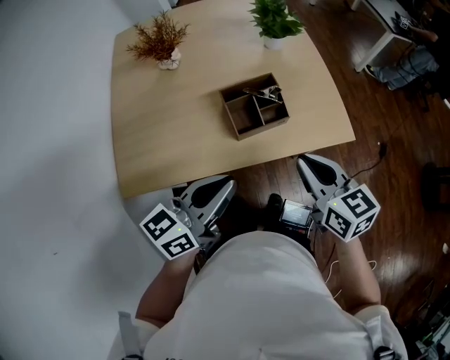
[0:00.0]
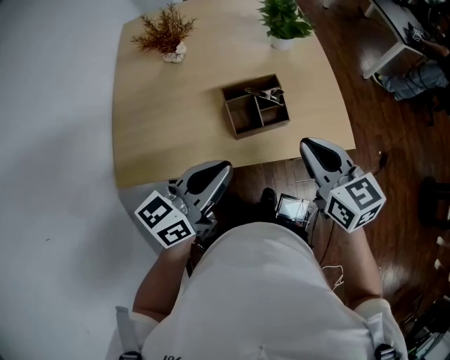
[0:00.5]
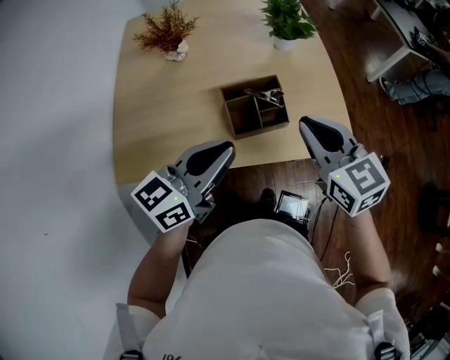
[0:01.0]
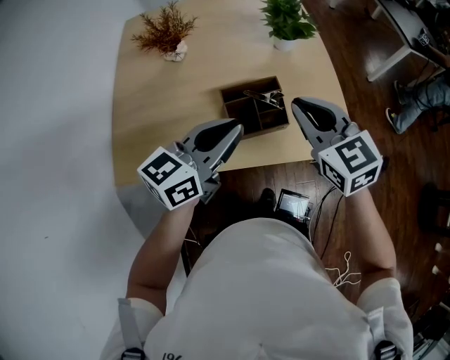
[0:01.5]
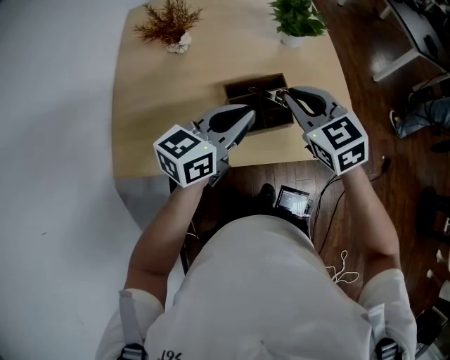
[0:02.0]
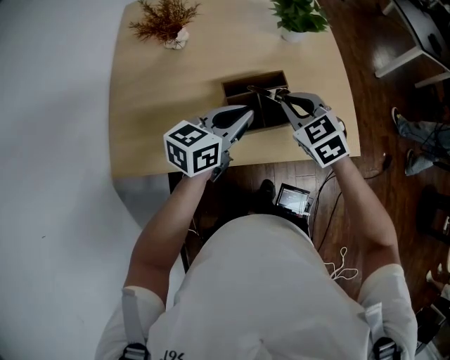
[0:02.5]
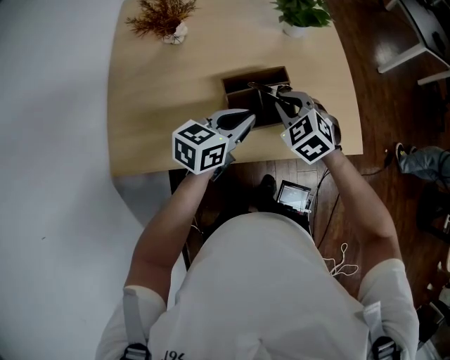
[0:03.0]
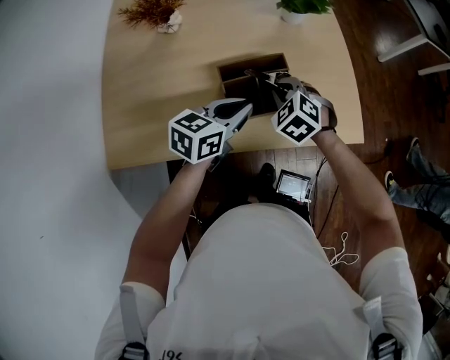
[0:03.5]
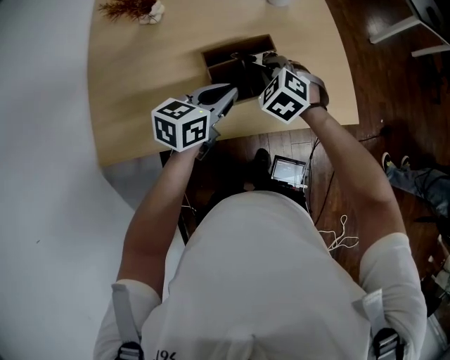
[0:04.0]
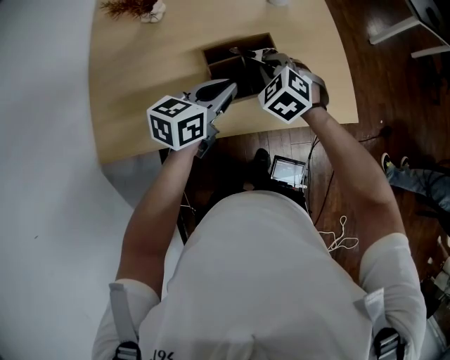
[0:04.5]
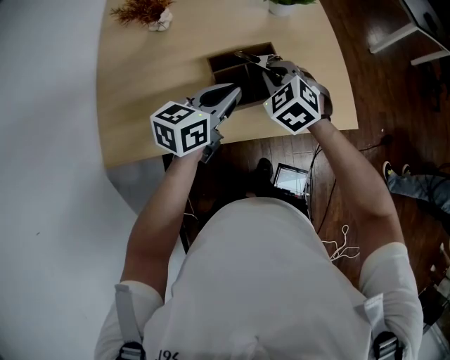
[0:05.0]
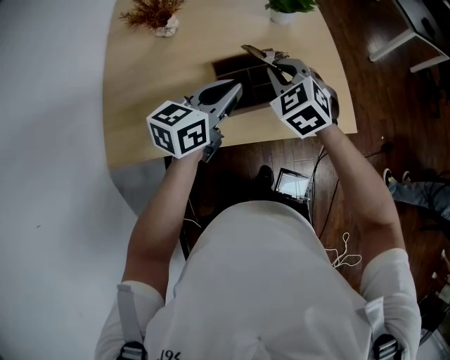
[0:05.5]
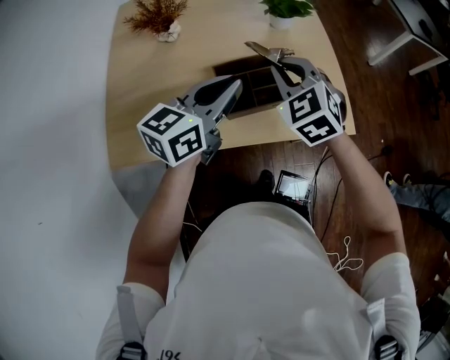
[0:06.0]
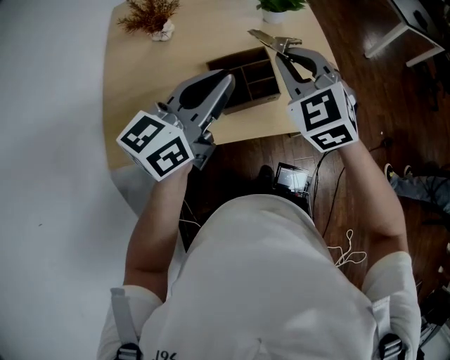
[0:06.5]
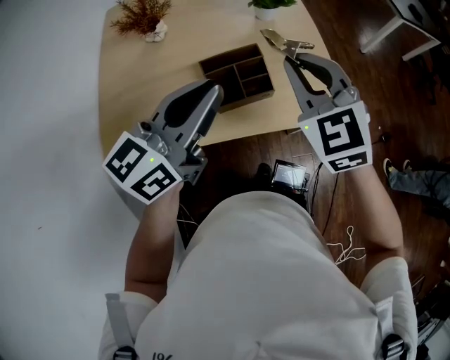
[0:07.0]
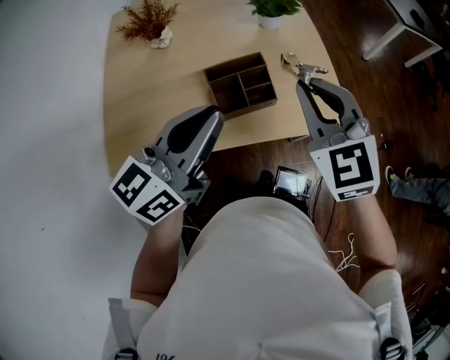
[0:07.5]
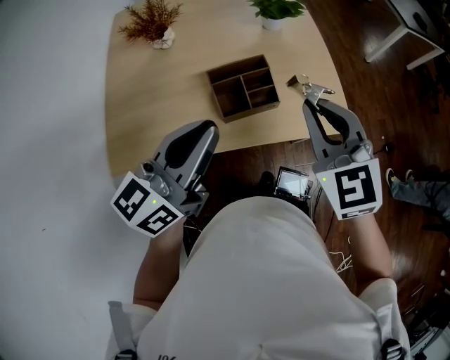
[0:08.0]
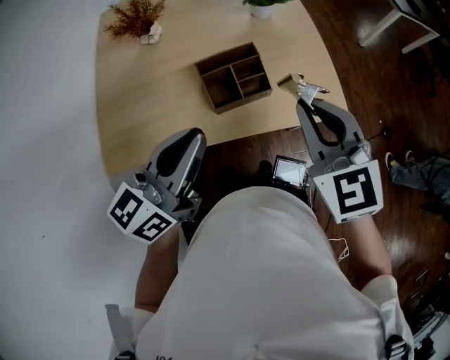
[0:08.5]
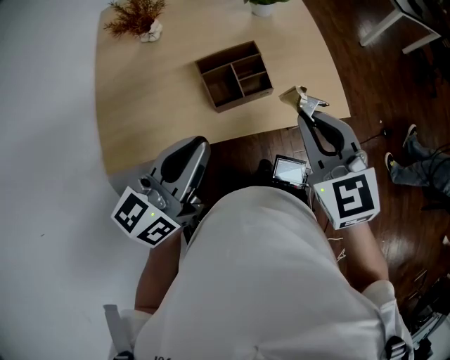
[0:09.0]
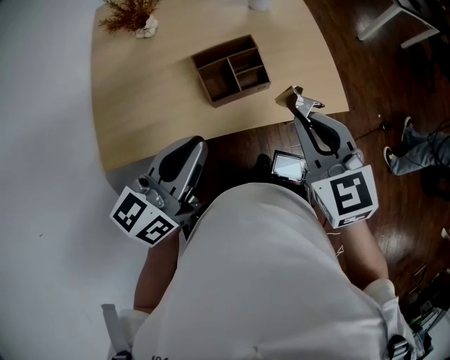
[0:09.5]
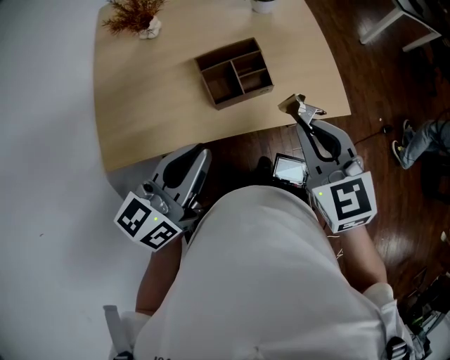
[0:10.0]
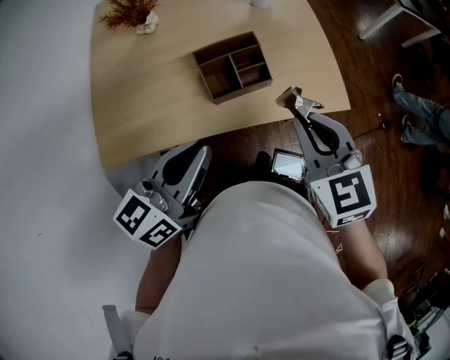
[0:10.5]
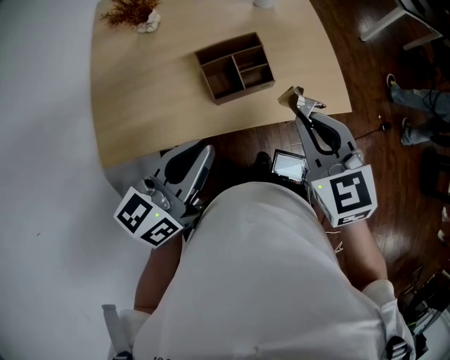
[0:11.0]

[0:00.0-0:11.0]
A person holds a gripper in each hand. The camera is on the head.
0:00.0 to 0:02.0: The grippers both shift forward by roughly 15 cm. The right gripper swivels some 30 degrees.
0:02.0 to 0:03.5: The grippers both shift downward by roughly 15 cm. The right gripper changes its angle by about 30 degrees.
0:03.5 to 0:05.5: Both grippers move upward, roughly 10 cm.
0:05.5 to 0:07.5: The left gripper goes roughly 15 cm upward and backward. Meanwhile the right gripper is displaced upward, backward and to the right by roughly 20 cm, and changes its angle by roughly 20 degrees.
0:07.5 to 0:09.0: The left gripper moves about 5 cm; the right gripper heads backward, covering roughly 5 cm.
0:09.0 to 0:11.0: There are only small adjustments of the grippers.

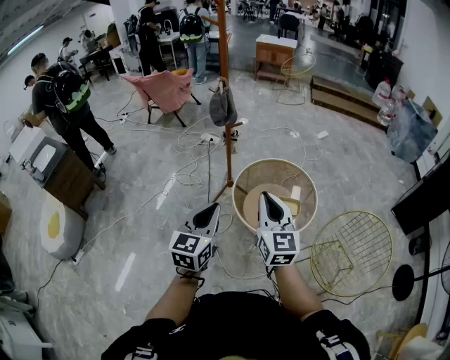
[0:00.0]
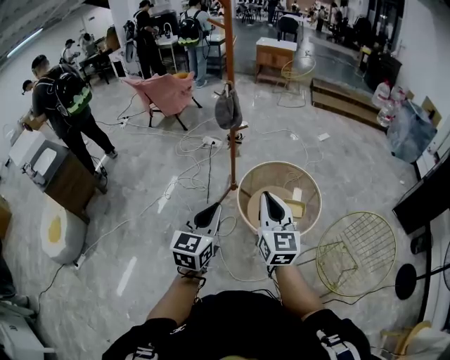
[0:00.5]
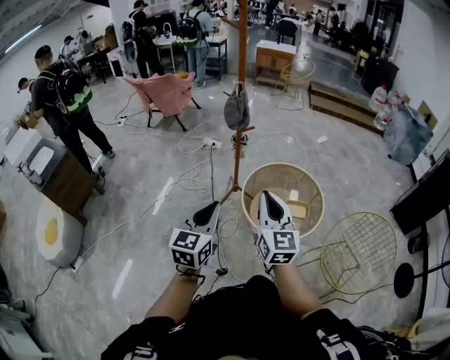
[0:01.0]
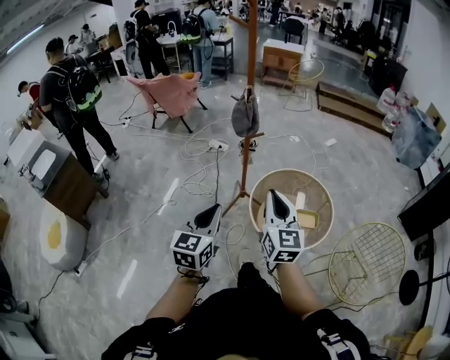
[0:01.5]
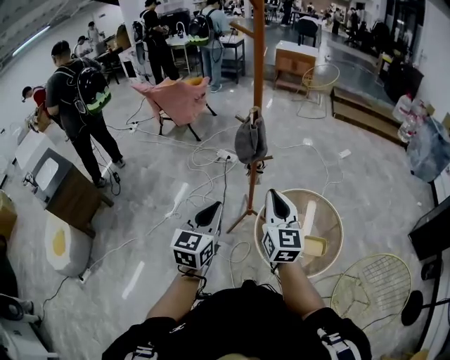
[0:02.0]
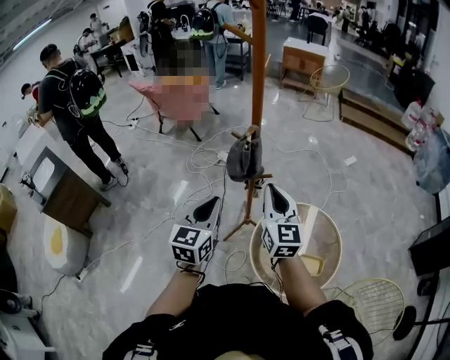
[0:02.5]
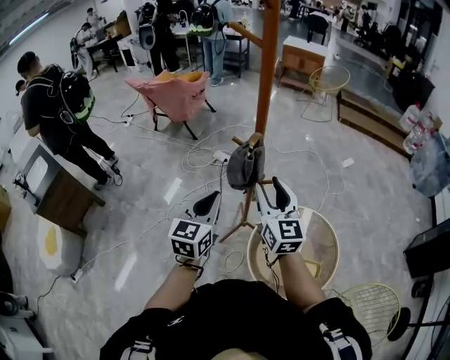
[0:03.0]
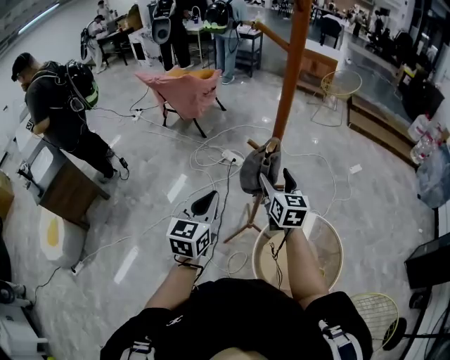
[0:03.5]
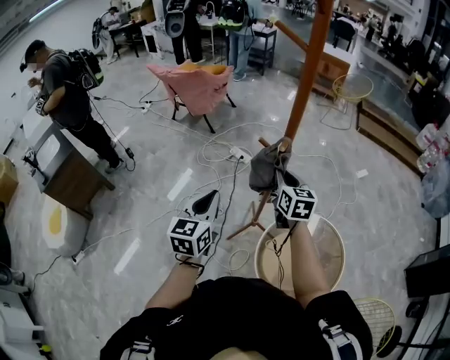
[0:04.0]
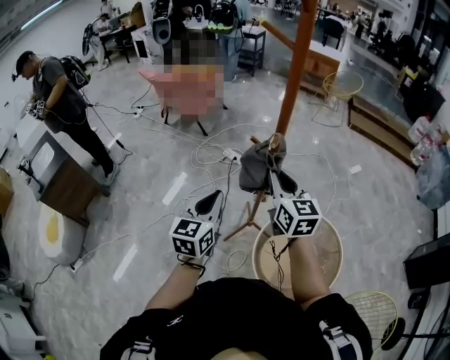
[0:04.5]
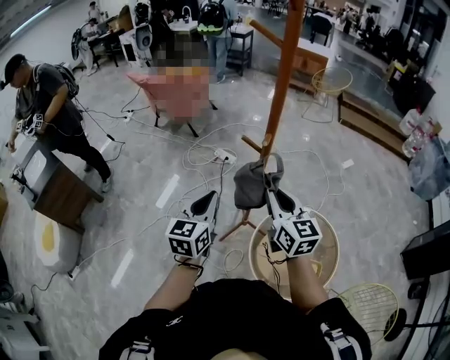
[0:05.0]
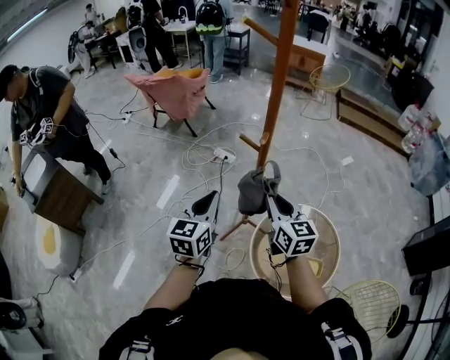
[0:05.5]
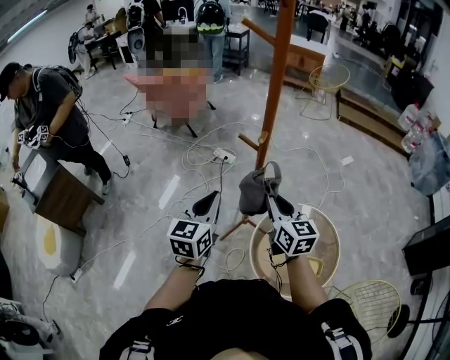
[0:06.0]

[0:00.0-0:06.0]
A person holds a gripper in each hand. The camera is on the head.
0:00.0 to 0:02.0: Both grippers travel together forward and to the left, some 35 cm.
0:02.0 to 0:04.0: The grippers both shift forward by some 30 cm. The right gripper rotates roughly 20 degrees, and opens and closes again.
0:04.0 to 0:06.0: The right gripper travels backward by roughly 15 cm; the left gripper shifts roughly 5 cm to the right.

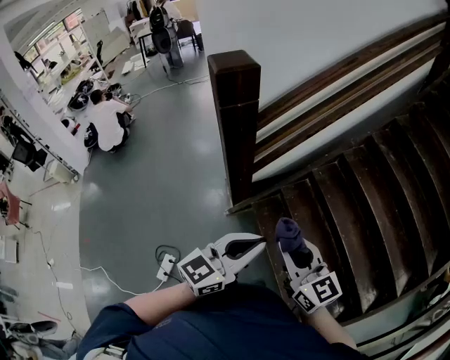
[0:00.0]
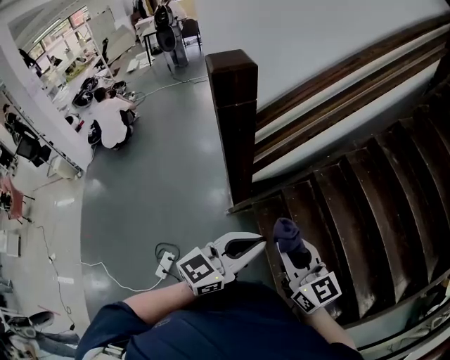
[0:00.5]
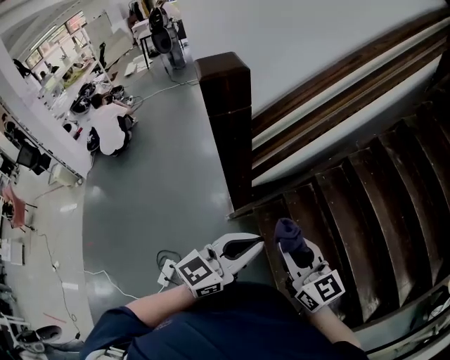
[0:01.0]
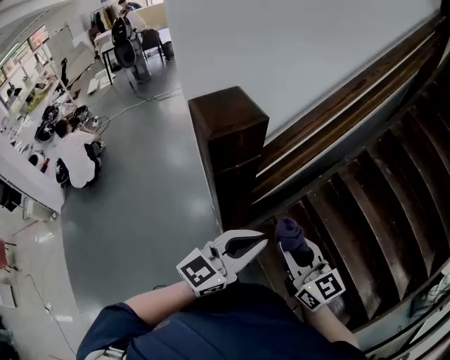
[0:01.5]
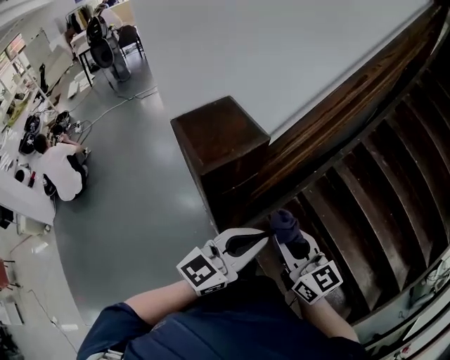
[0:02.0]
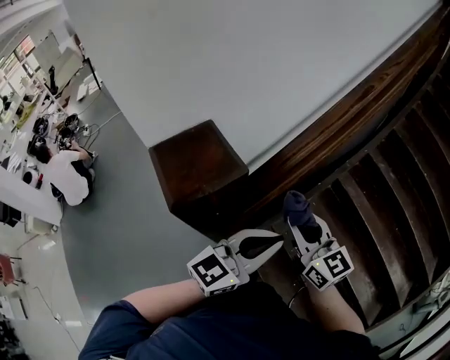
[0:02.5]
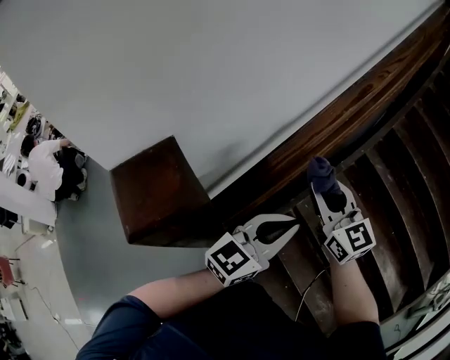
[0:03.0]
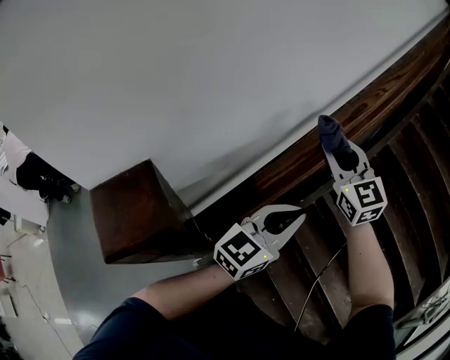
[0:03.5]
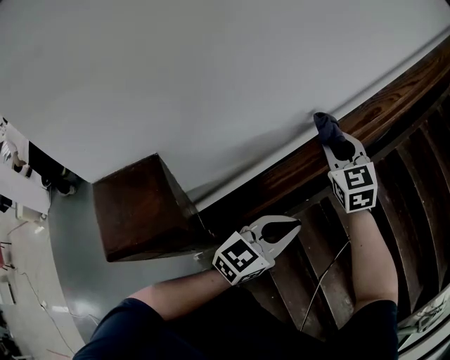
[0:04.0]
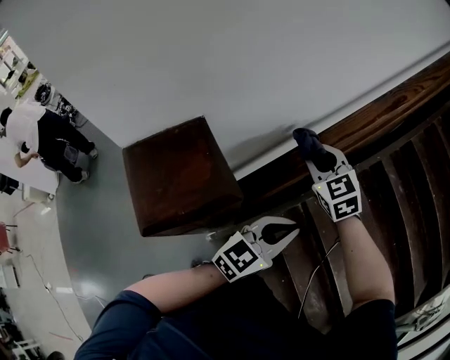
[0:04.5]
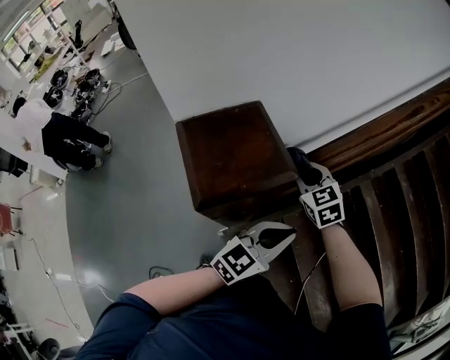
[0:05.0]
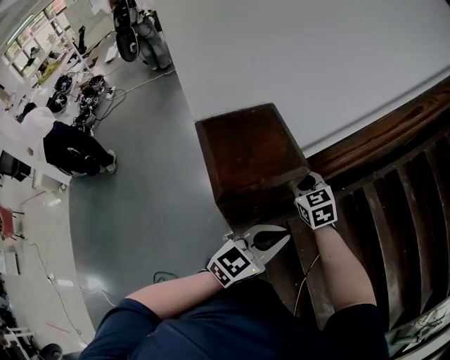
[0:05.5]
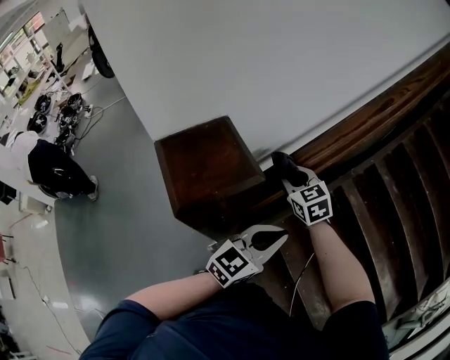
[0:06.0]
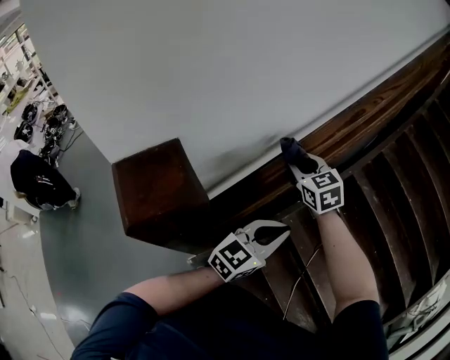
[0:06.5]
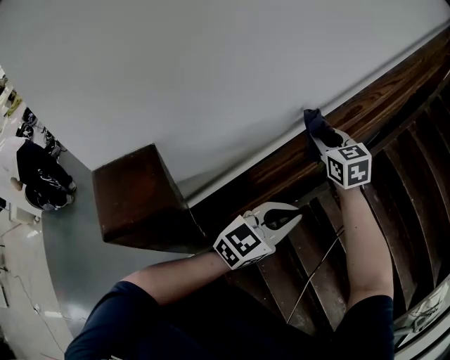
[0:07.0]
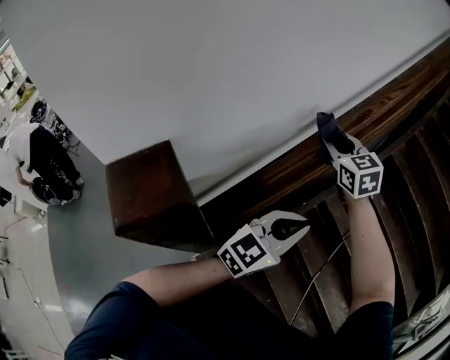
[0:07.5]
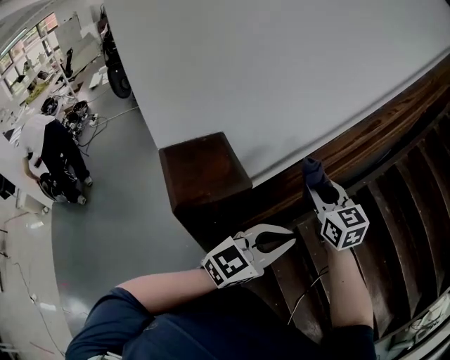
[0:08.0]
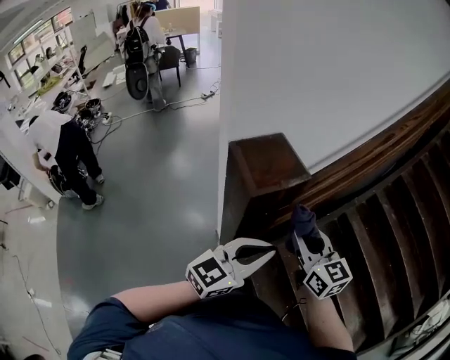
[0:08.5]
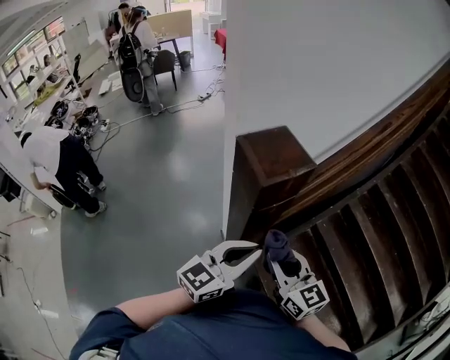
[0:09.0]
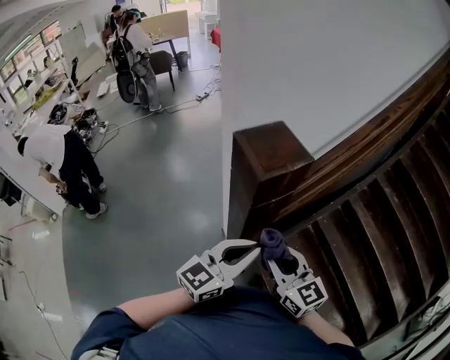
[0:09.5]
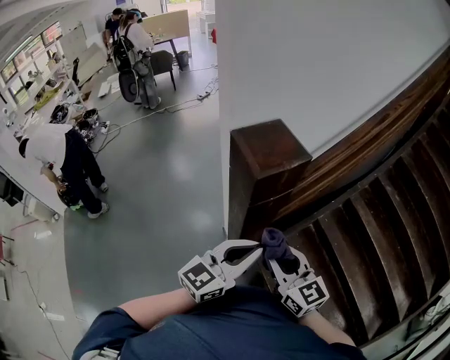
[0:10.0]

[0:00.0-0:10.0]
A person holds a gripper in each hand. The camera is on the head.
0:00.0 to 0:02.0: The grippers both shift forward and to the left by approximately 35 cm.
0:02.0 to 0:04.0: The left gripper shifts some 30 cm forward and to the right, while the right gripper travels forward by some 50 cm, and changes its angle by some 40 degrees.
0:04.0 to 0:06.0: The right gripper travels backward, downward and to the left by roughly 25 cm, and swivels roughly 20 degrees. Meanwhile the left gripper heads backward and to the left, covering some 15 cm.
0:06.0 to 0:08.0: The right gripper goes approximately 15 cm upward and to the right, and moves roughly 20 cm forward and comes back, while the left gripper moves upward, some 10 cm, and moves approximately 15 cm forward and comes back.
0:08.0 to 0:10.0: The right gripper moves backward and to the left, approximately 35 cm. Meanwhile the left gripper travels to the left and backward by about 25 cm.
